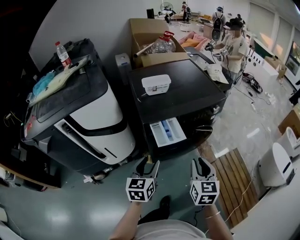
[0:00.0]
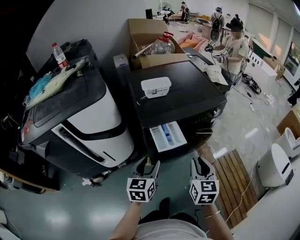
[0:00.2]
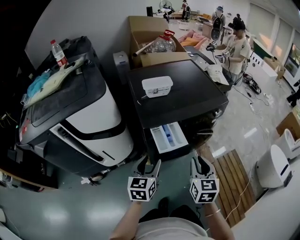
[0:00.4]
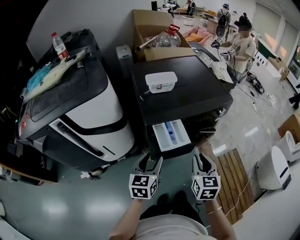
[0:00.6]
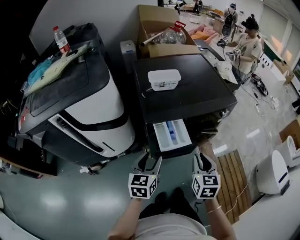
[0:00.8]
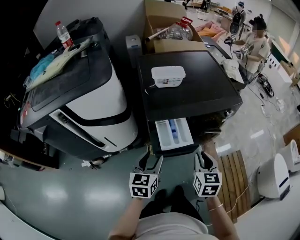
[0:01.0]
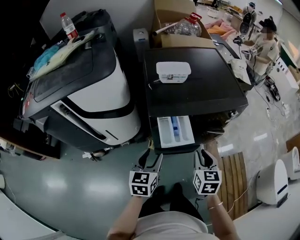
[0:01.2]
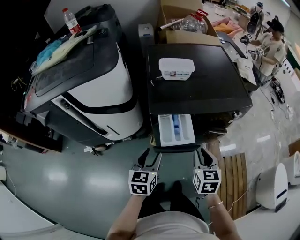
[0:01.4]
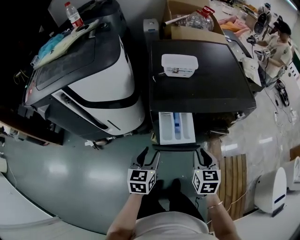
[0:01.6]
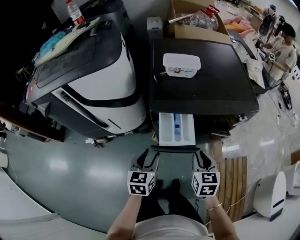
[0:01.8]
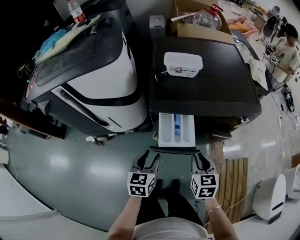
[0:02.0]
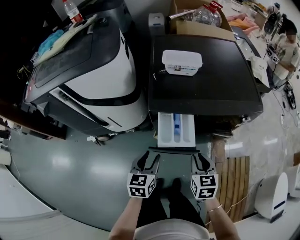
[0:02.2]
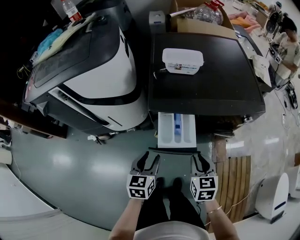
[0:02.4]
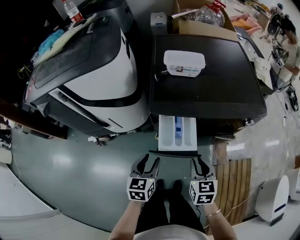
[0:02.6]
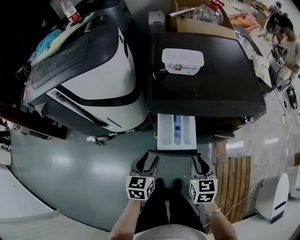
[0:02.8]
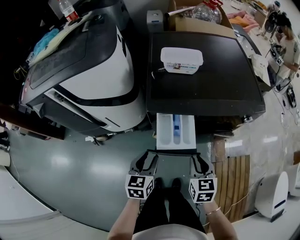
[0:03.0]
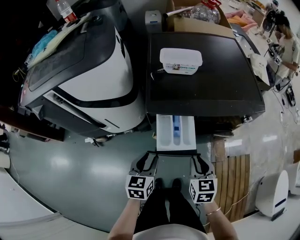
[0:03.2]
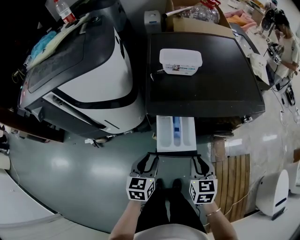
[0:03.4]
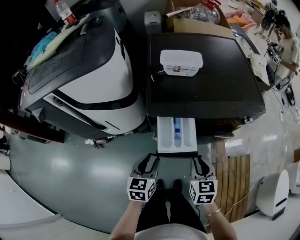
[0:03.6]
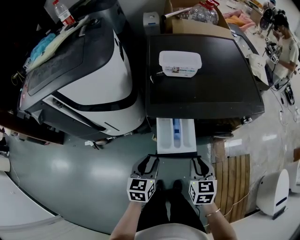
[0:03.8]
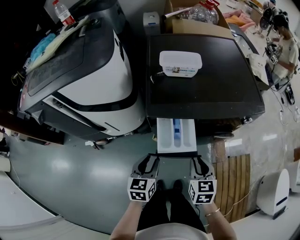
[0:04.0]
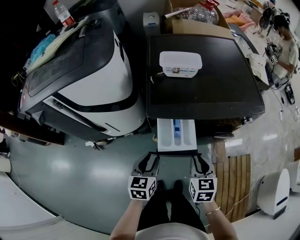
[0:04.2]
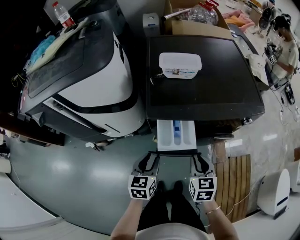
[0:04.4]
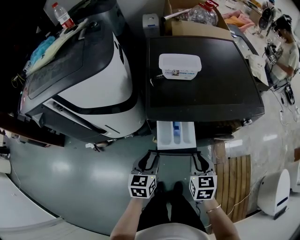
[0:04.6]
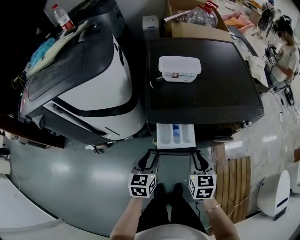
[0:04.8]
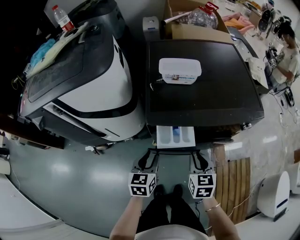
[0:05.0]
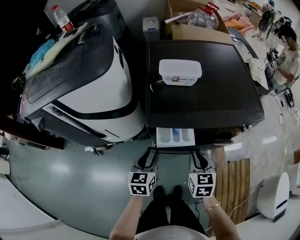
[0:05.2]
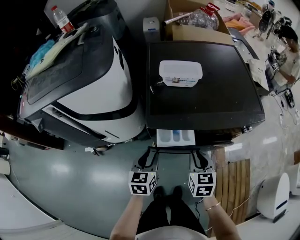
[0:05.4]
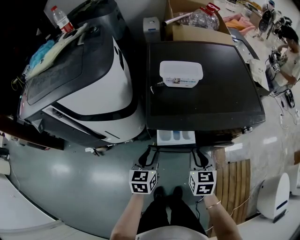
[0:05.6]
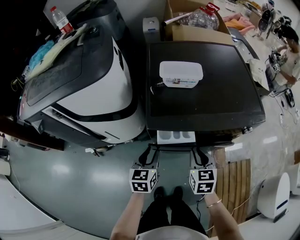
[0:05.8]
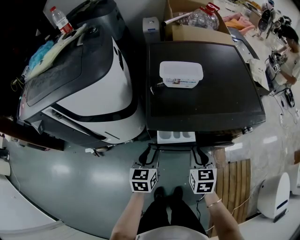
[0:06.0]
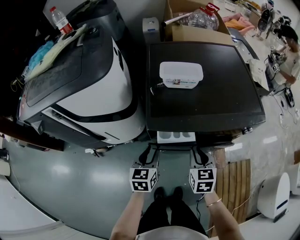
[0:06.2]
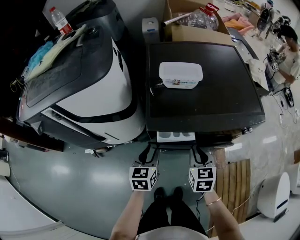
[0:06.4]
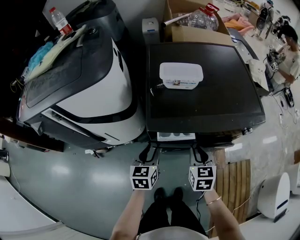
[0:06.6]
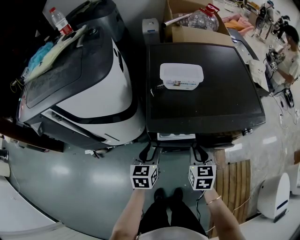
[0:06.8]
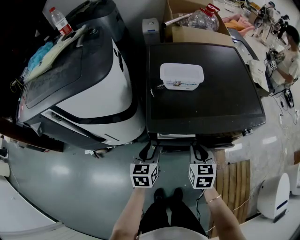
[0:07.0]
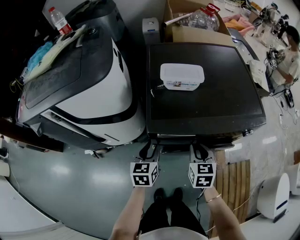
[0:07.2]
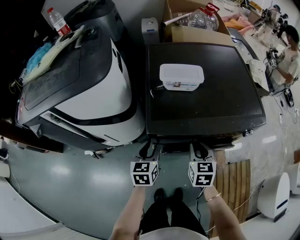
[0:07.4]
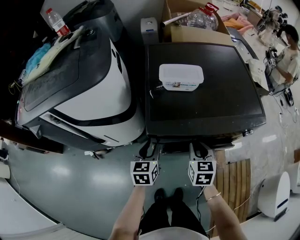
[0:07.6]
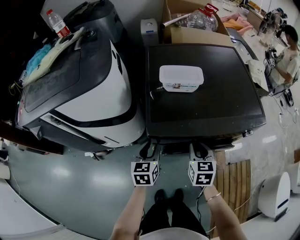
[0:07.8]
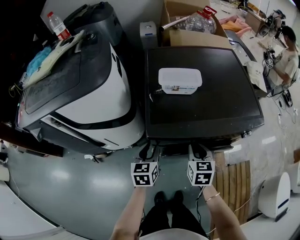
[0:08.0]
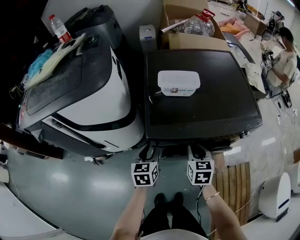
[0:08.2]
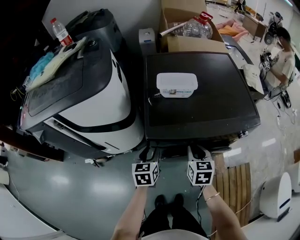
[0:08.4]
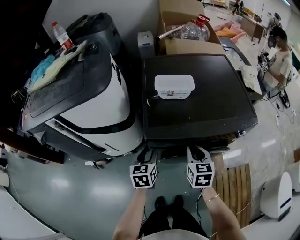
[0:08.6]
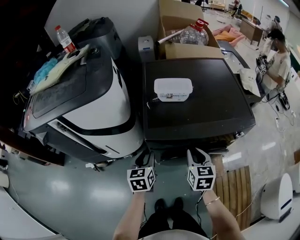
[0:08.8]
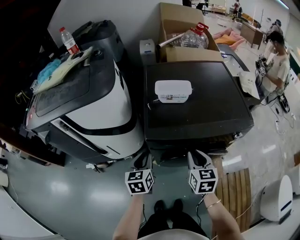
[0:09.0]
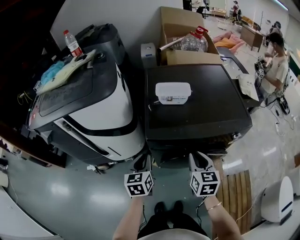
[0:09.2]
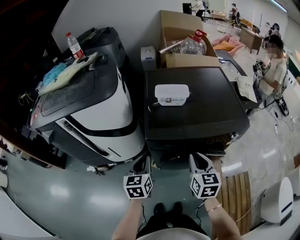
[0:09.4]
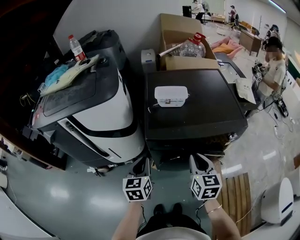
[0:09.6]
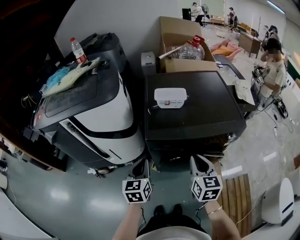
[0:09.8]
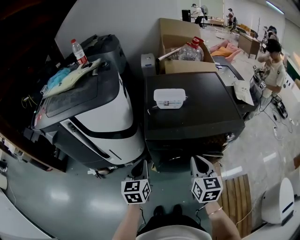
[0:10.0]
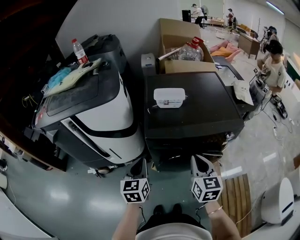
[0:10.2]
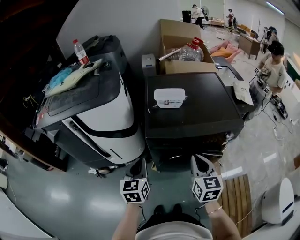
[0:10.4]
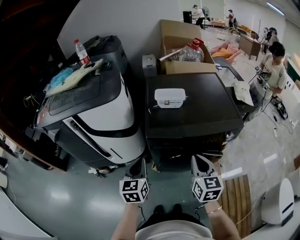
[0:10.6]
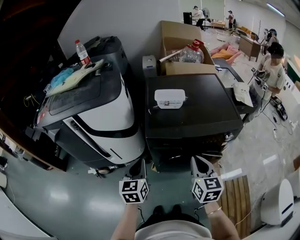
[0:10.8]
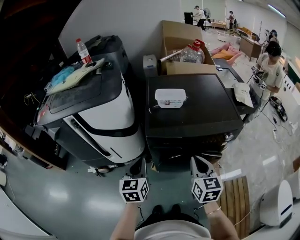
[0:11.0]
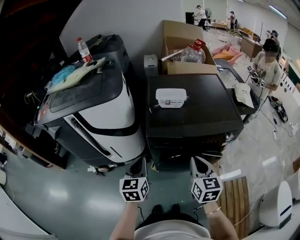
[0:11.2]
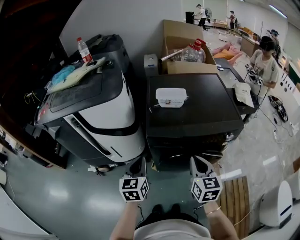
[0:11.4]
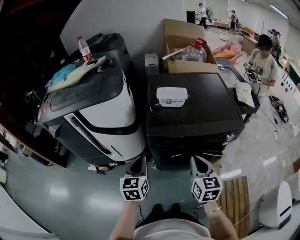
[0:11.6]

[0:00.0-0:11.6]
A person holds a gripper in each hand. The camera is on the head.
0:00.0 to 0:01.4: The right gripper shifts some 15 cm forward and downward. The left gripper is displaced downward by about 5 cm.
0:01.4 to 0:02.8: The grippers both shift downward by some 5 cm.
0:02.8 to 0:04.4: The grippers stay close to where they were, moving slightly.
0:04.4 to 0:05.8: The grippers both shift forward by about 5 cm.
0:05.8 to 0:08.8: The grippers make only small movements.
0:08.8 to 0:10.2: Both grippers move upward and backward, approximately 15 cm. The left gripper closes.
0:10.2 to 0:11.6: The grippers stay close to where they were, moving slightly.

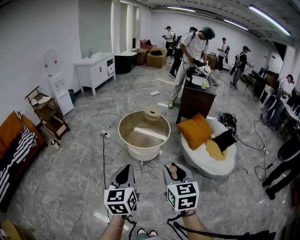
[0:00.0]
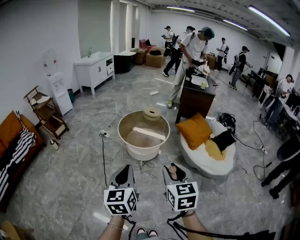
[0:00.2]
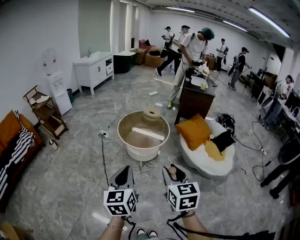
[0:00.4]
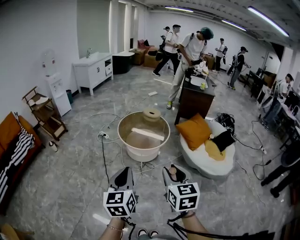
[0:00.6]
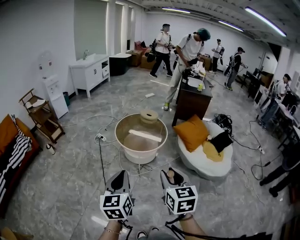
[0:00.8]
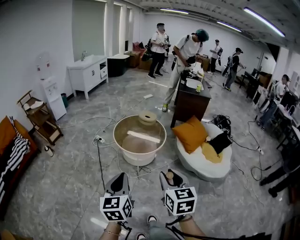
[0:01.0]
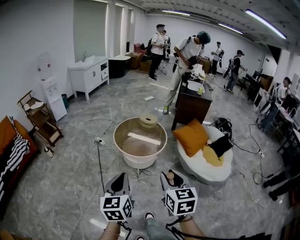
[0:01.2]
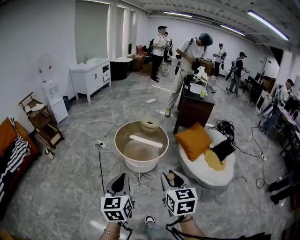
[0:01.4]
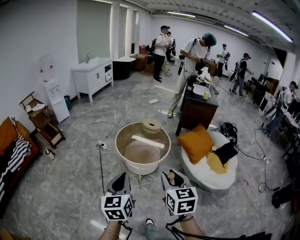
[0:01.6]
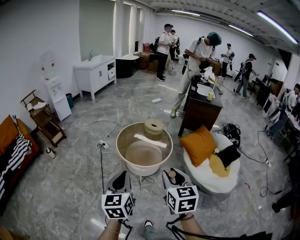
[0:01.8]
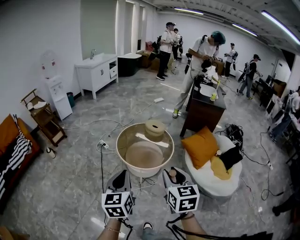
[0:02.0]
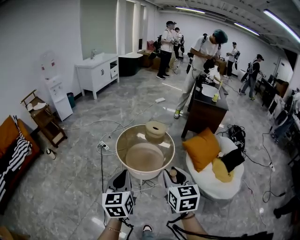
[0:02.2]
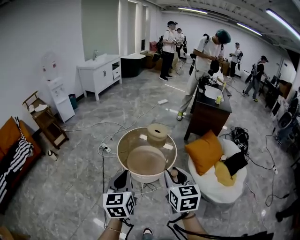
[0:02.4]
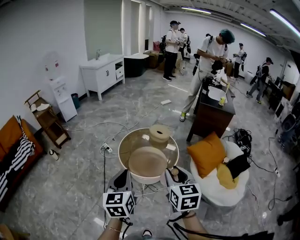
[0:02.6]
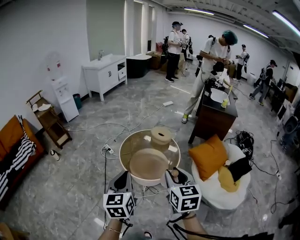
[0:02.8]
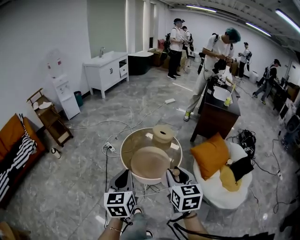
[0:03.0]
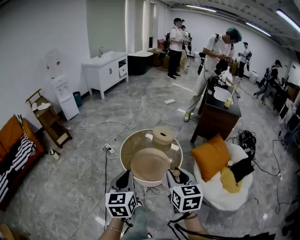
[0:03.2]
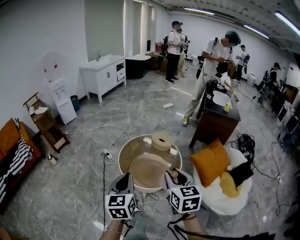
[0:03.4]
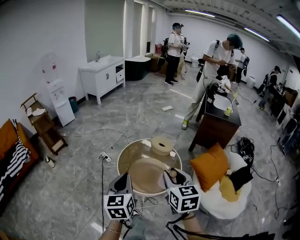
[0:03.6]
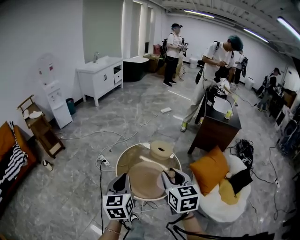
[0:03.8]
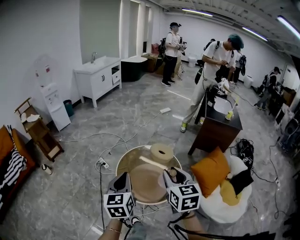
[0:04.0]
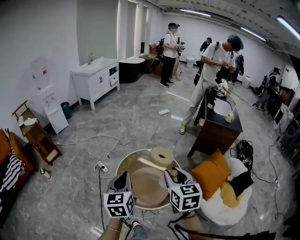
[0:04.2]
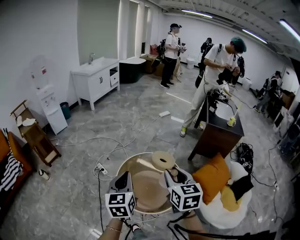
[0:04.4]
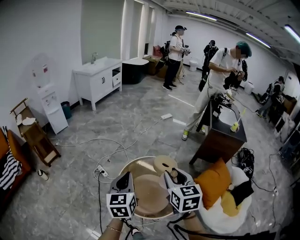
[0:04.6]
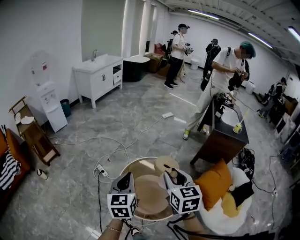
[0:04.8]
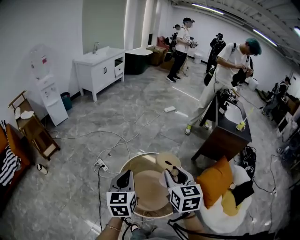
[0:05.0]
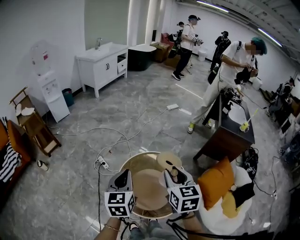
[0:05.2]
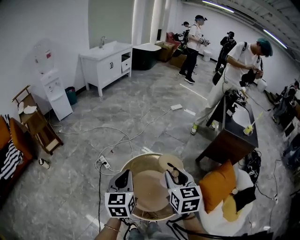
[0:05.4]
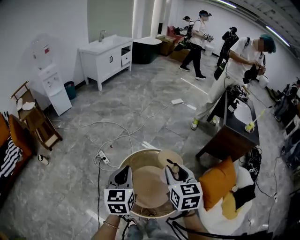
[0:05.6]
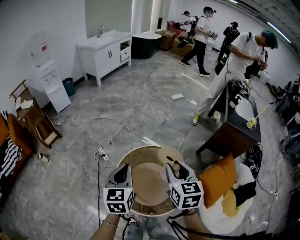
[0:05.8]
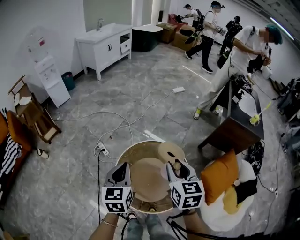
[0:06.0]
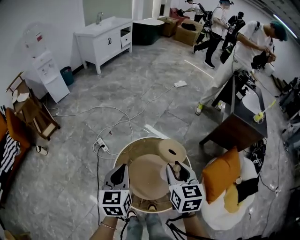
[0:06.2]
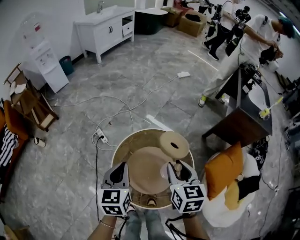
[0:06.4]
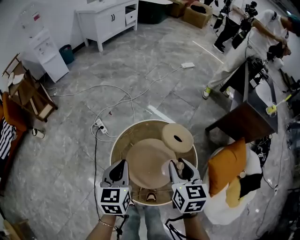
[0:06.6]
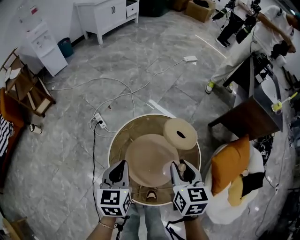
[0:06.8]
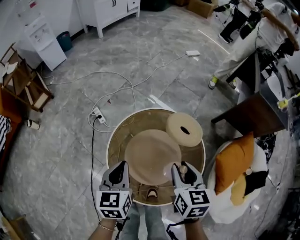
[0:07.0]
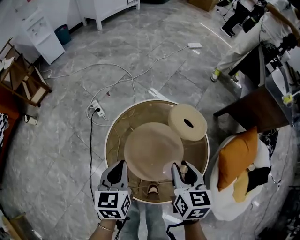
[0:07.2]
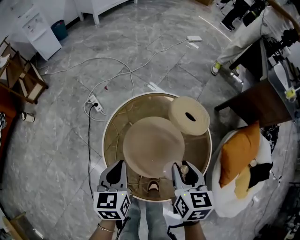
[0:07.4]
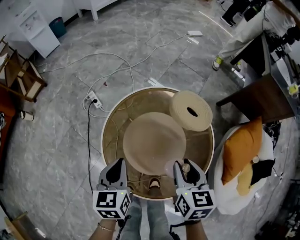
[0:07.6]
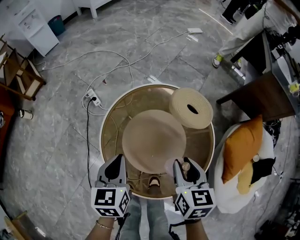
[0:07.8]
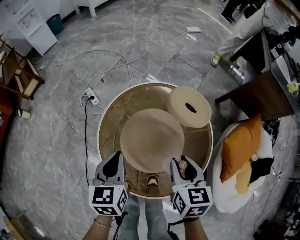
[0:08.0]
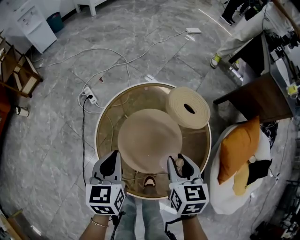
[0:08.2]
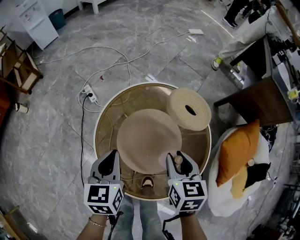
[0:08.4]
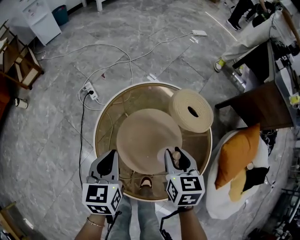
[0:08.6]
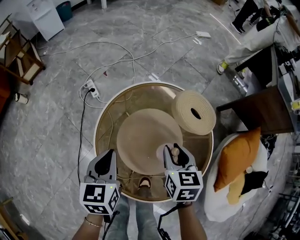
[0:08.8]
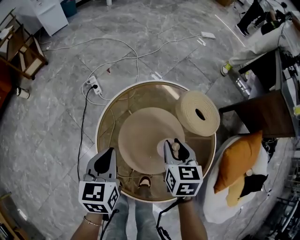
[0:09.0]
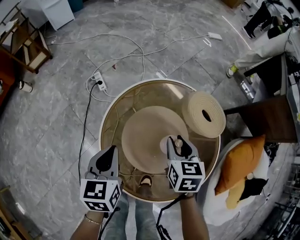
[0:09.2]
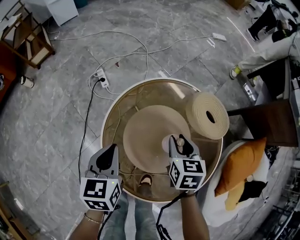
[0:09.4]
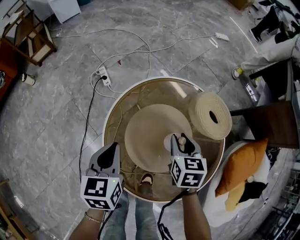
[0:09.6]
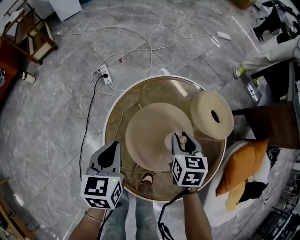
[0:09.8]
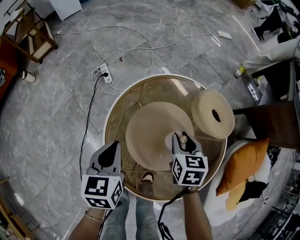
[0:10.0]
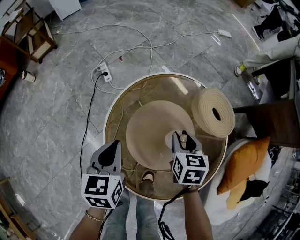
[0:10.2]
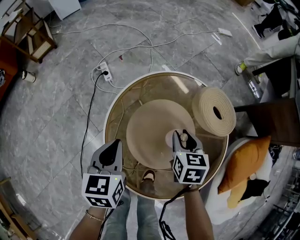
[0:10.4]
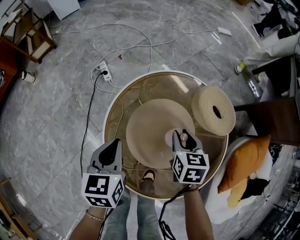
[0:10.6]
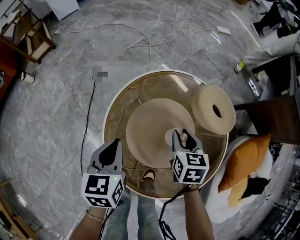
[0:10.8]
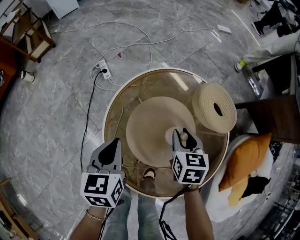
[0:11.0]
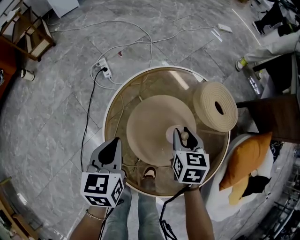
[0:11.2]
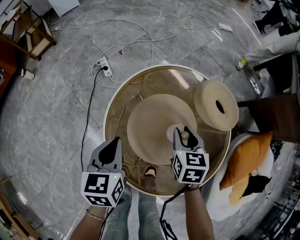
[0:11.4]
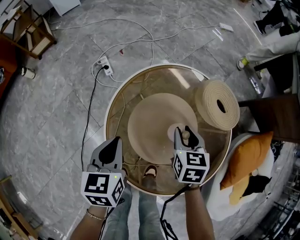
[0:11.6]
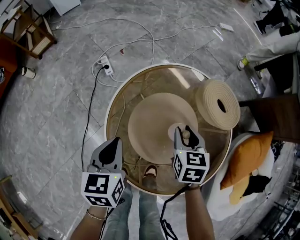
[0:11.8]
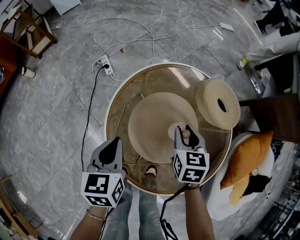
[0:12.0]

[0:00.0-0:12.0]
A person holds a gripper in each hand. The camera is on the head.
0:00.0 to 0:01.6: Both grippers travel together forward, roughly 10 cm.
0:01.6 to 0:03.0: The grippers both shift forward by approximately 20 cm.
0:03.0 to 0:04.4: The grippers both shift forward by roughly 30 cm.
0:04.4 to 0:06.0: The grippers both shift forward and downward by approximately 20 cm.
0:06.0 to 0:07.6: Both grippers travel together downward, about 30 cm.
0:07.6 to 0:09.0: The right gripper shifts about 10 cm downward and forward.
0:09.0 to 0:10.4: The right gripper shifts some 5 cm downward.
0:10.4 to 0:12.0: The grippers move only a little.

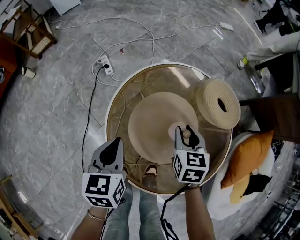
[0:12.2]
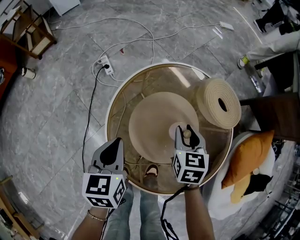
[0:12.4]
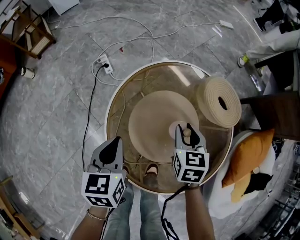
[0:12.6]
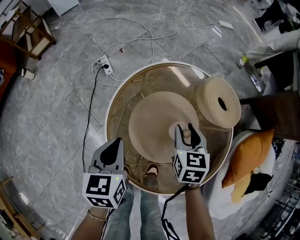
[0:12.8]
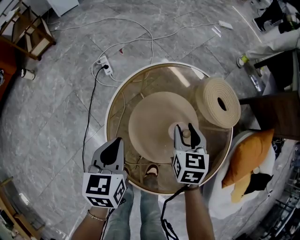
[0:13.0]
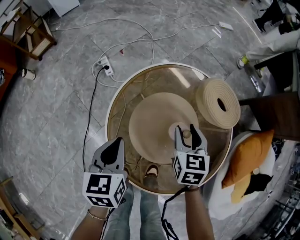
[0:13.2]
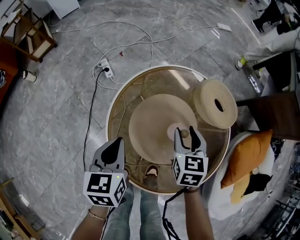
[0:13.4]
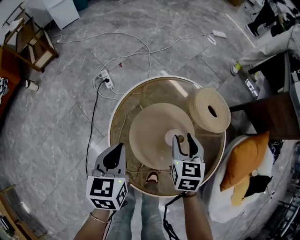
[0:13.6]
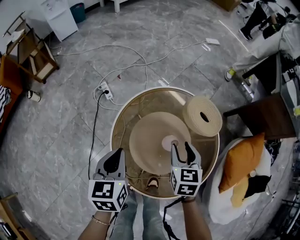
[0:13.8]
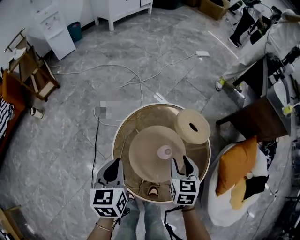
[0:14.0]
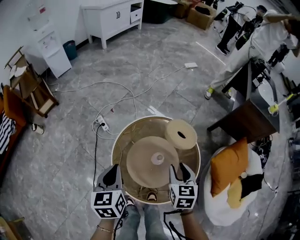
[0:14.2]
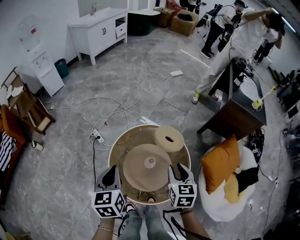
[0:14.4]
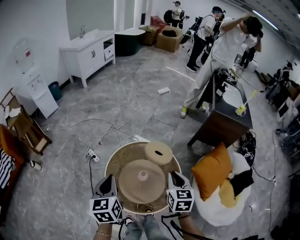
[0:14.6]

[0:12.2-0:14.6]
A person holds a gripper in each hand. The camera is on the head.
0:12.2 to 0:13.4: The grippers move only a little.
0:13.4 to 0:14.6: Both grippers travel together upward, roughly 35 cm. The right gripper changes its angle by some 20 degrees, and closes up.
